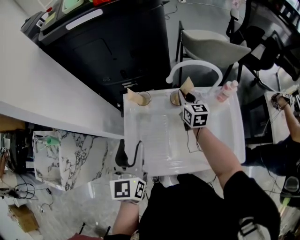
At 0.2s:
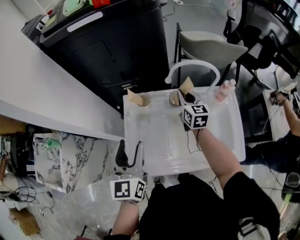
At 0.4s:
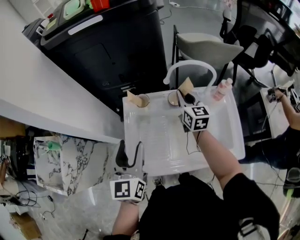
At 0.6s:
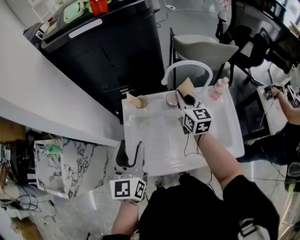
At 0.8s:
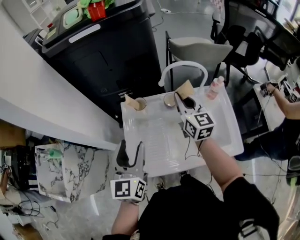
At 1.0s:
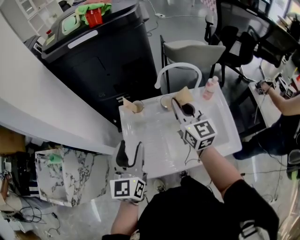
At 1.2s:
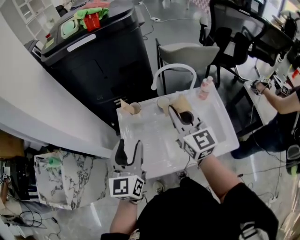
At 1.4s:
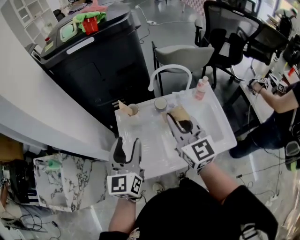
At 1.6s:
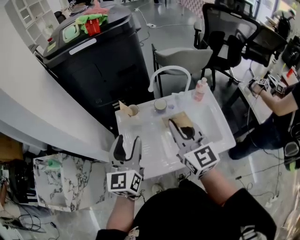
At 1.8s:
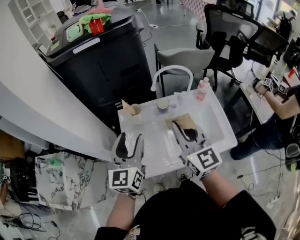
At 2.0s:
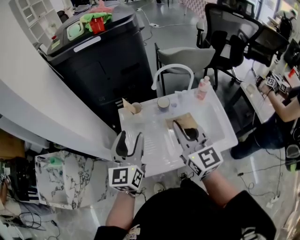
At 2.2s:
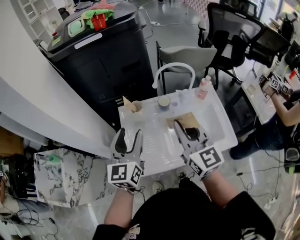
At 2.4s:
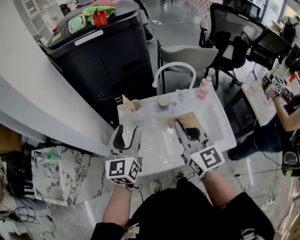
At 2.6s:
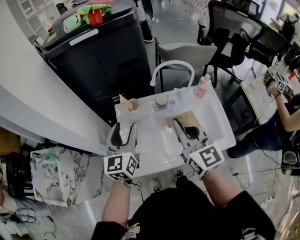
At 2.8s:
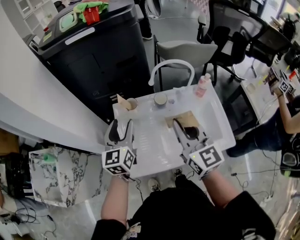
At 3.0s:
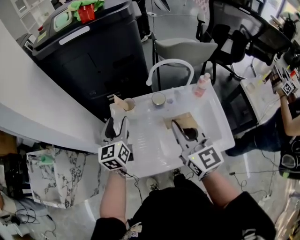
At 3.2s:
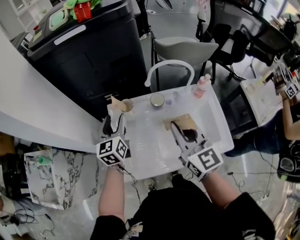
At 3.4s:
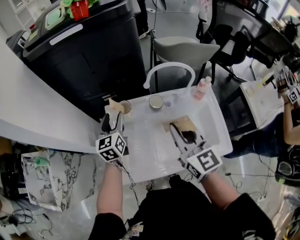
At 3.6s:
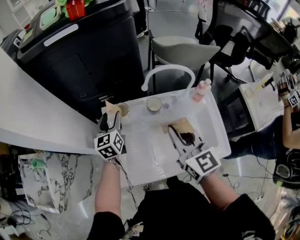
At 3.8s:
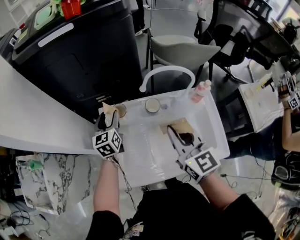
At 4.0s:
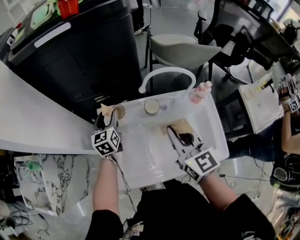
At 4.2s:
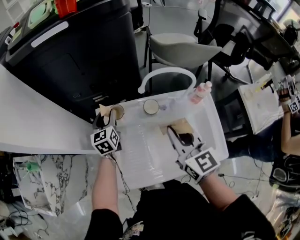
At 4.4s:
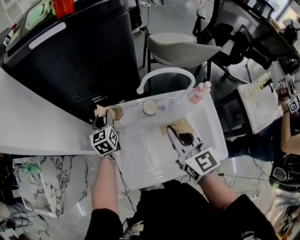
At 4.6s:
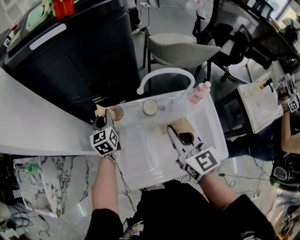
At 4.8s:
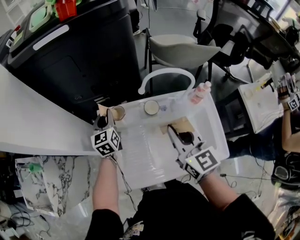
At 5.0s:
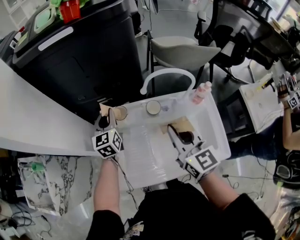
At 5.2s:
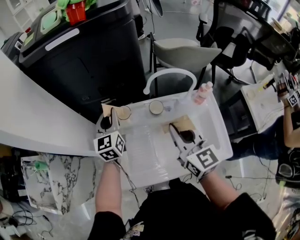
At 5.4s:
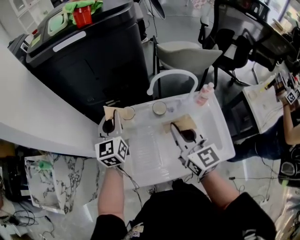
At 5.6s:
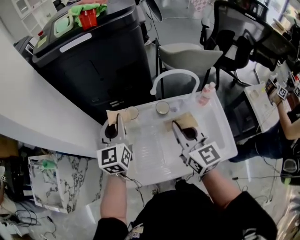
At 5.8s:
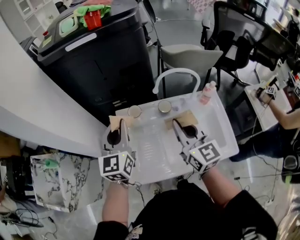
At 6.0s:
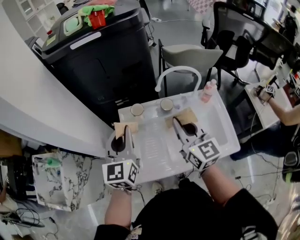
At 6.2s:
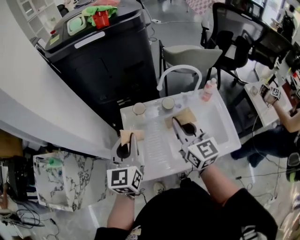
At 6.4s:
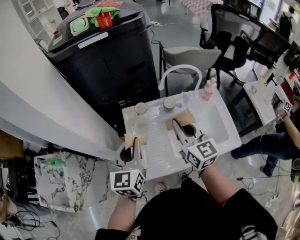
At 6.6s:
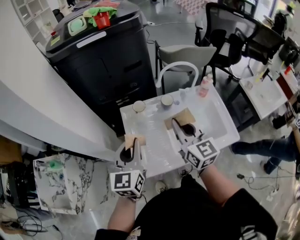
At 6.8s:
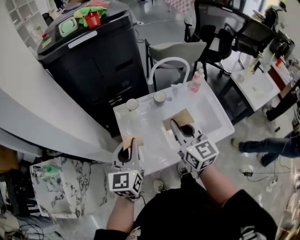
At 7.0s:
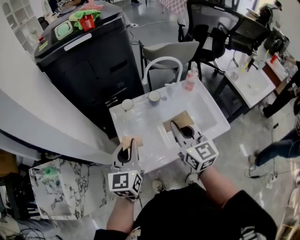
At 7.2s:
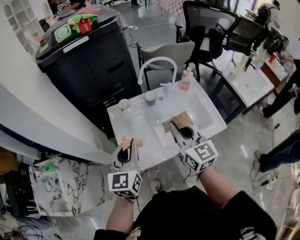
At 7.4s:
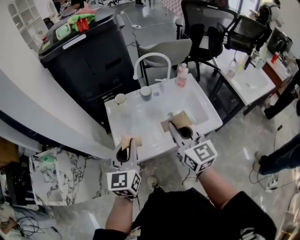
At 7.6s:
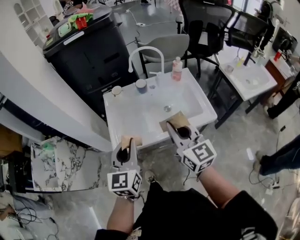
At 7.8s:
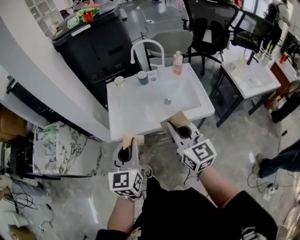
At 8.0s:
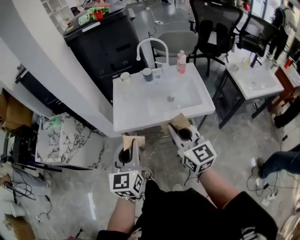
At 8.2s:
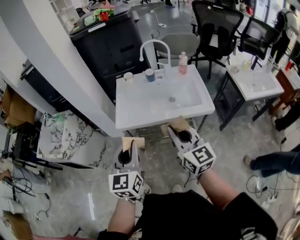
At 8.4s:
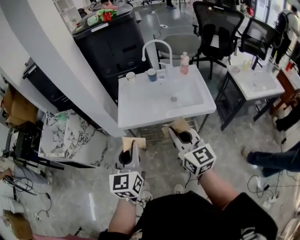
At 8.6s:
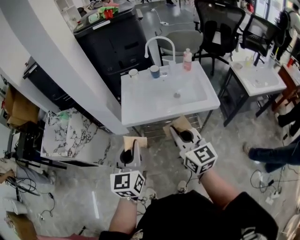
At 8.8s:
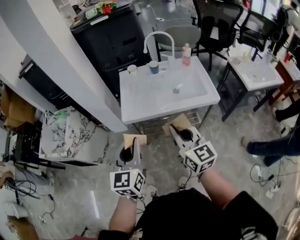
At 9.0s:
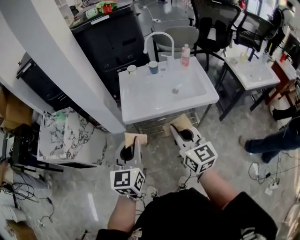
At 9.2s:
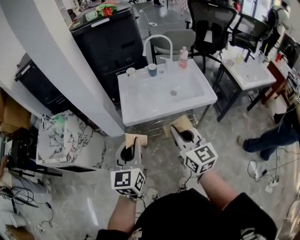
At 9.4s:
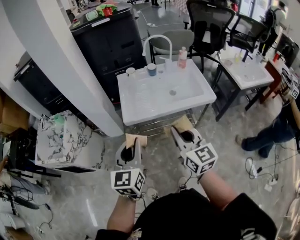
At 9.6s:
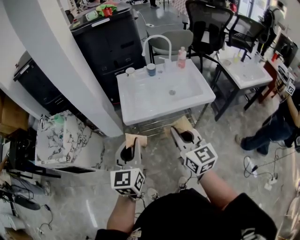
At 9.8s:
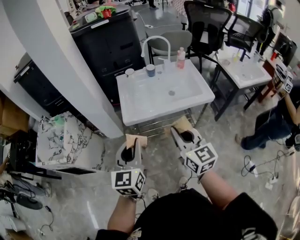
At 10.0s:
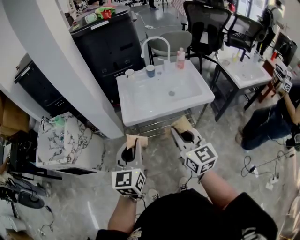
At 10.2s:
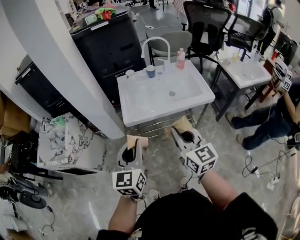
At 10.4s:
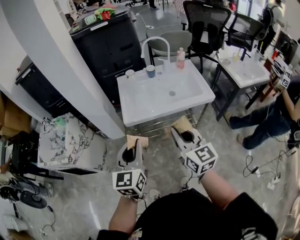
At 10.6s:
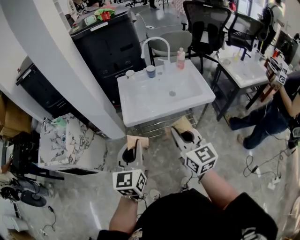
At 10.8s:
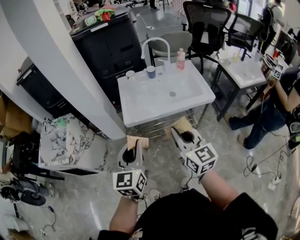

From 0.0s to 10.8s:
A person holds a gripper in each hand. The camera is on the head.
From 0.0s to 1.6s: The right gripper travels backward and upward by about 35 cm, and rotates approximately 20 degrees. Meanwhile the left gripper is displaced upward by approximately 5 cm.
From 1.6s to 3.0s: The left gripper is displaced forward and downward by some 15 cm.
From 3.0s to 4.6s: The left gripper is displaced forward and downward by roughly 20 cm, and closes its fingers, while the right gripper heads forward and downward, covering about 10 cm.
From 4.6s to 6.2s: The right gripper travels to the left and upward by about 10 cm. The left gripper is displaced backward and upward by some 30 cm.
From 6.2s to 7.8s: The left gripper goes roughly 35 cm backward and to the right. The right gripper goes some 30 cm backward.
From 7.8s to 9.2s: The left gripper heads to the left and backward, covering about 15 cm, while the right gripper goes some 15 cm backward and to the left.
From 9.2s to 10.8s: The grippers stay close to where they were, moving slightly.

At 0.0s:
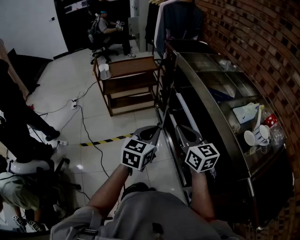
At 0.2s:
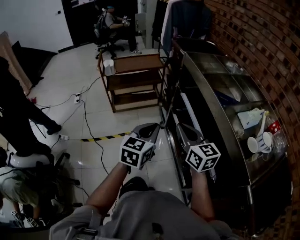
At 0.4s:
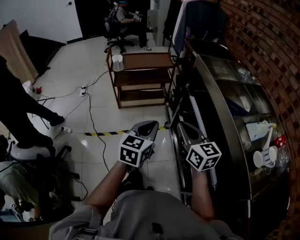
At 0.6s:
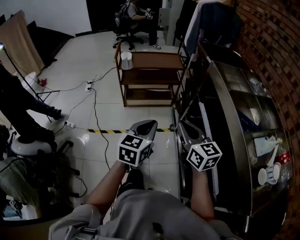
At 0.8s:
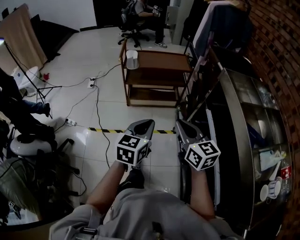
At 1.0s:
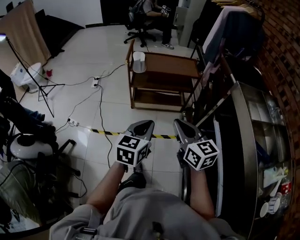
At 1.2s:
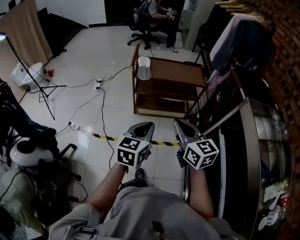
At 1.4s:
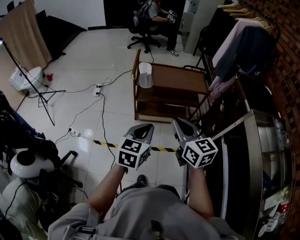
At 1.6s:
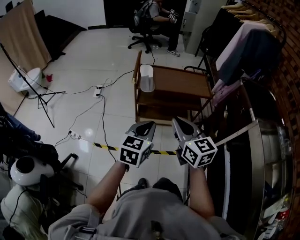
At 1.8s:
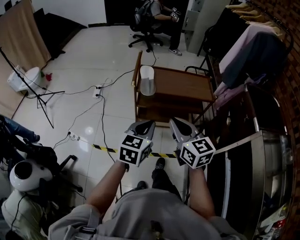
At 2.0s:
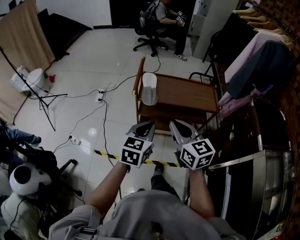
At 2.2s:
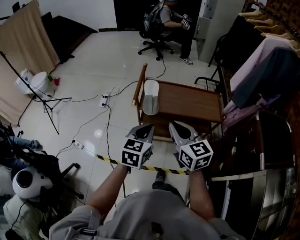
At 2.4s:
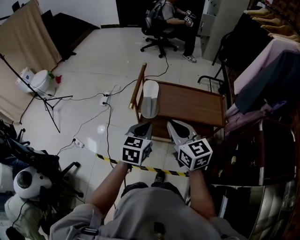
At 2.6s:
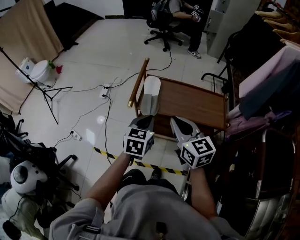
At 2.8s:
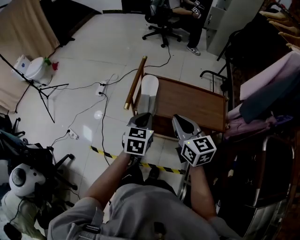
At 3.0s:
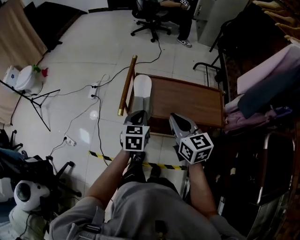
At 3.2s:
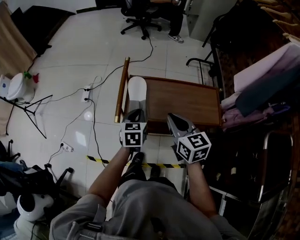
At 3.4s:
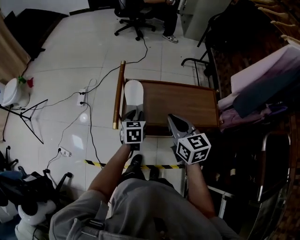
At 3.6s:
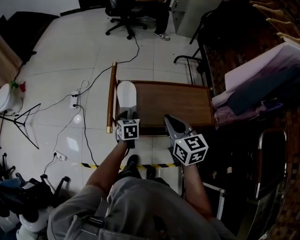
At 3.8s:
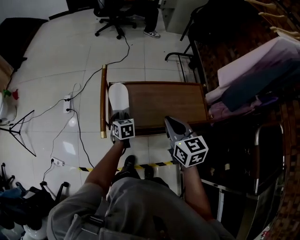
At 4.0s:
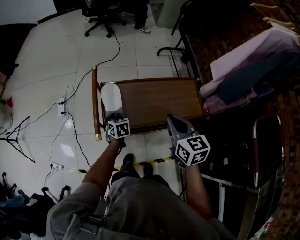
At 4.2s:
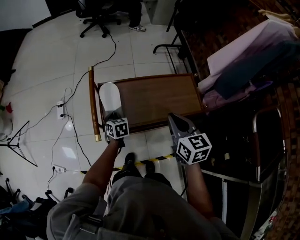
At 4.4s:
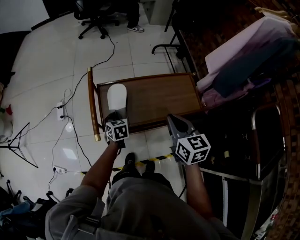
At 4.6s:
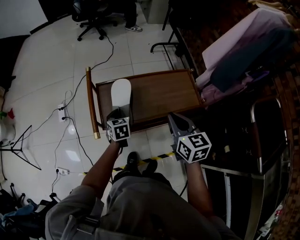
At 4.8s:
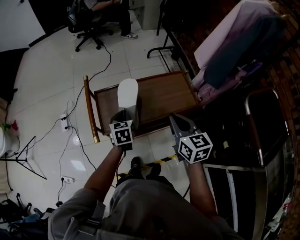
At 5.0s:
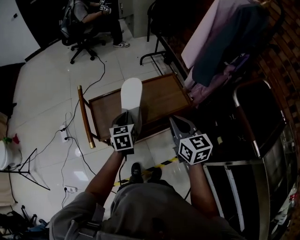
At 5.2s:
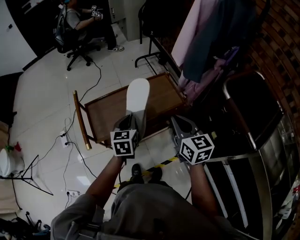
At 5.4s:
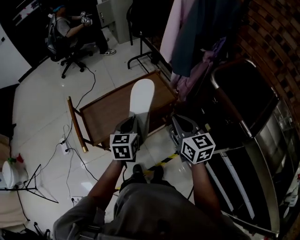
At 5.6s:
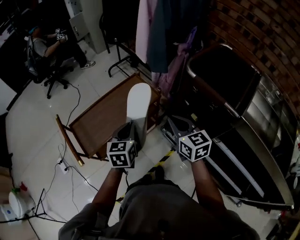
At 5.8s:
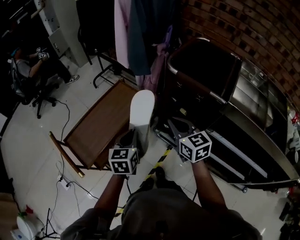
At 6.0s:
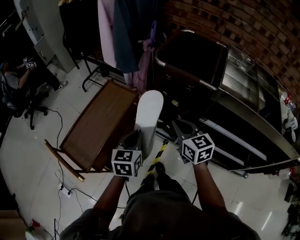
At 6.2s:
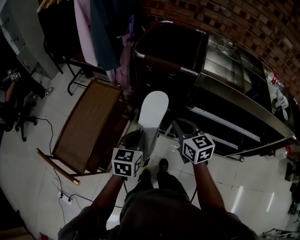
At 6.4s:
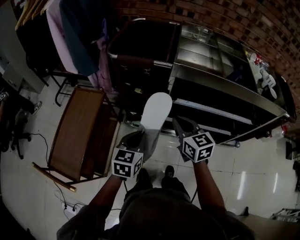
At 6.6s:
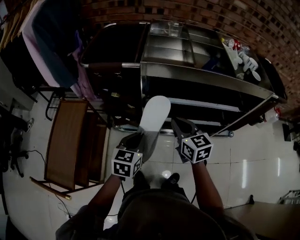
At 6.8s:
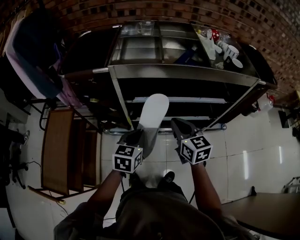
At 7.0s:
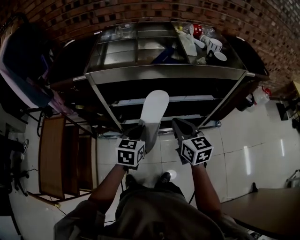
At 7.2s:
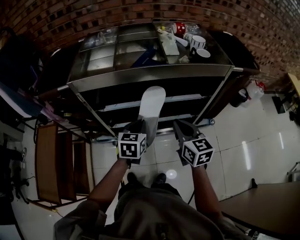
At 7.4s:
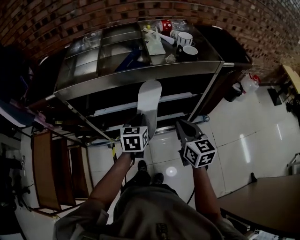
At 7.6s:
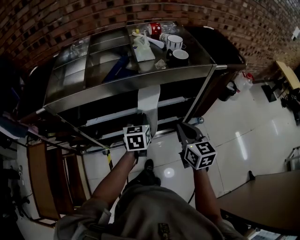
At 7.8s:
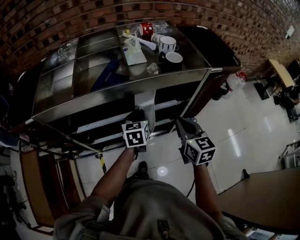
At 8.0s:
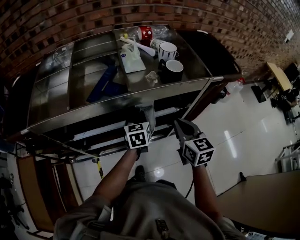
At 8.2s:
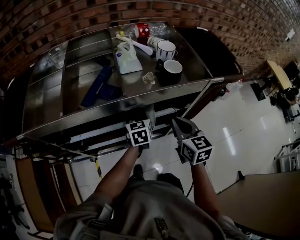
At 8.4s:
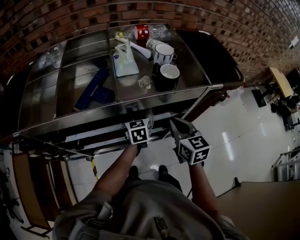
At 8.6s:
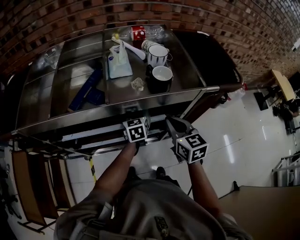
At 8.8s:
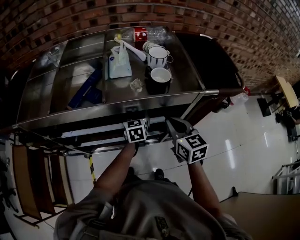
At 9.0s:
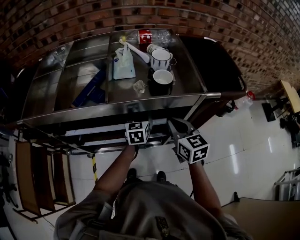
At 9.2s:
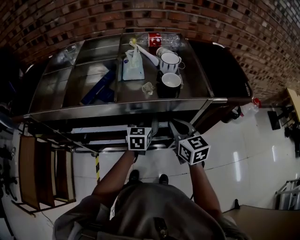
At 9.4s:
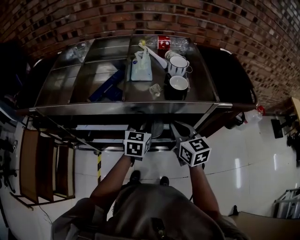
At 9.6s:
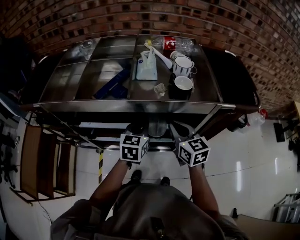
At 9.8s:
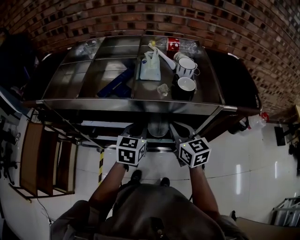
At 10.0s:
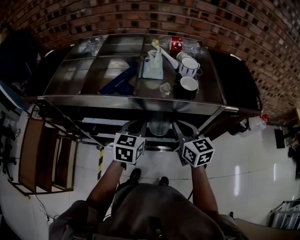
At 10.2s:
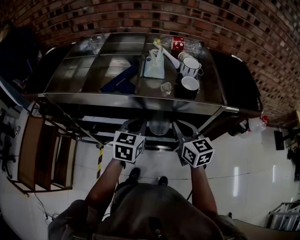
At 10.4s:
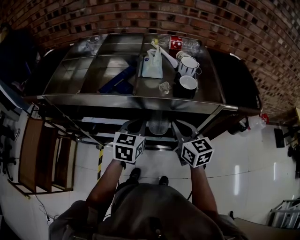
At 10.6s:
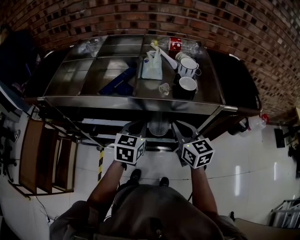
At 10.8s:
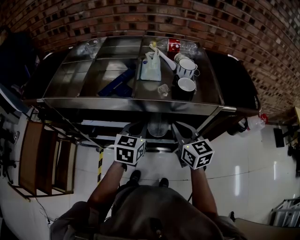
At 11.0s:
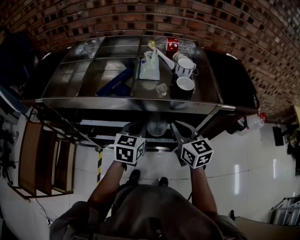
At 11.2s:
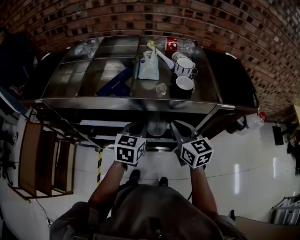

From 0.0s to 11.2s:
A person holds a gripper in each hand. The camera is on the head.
From 0.0s to 1.6s: Both grippers are carried forward and to the left, roughly 50 cm. The left gripper rotates approximately 20 degrees. The right gripper rotates roughly 20 degrees.
From 1.6s to 3.2s: The grippers both shift forward by roughly 40 cm. The left gripper changes its angle by some 20 degrees.
From 3.2s to 4.8s: The left gripper shifts approximately 5 cm to the right, travels downward and back again, roughly 15 cm each way, and opens, then closes again, while the right gripper shifts approximately 10 cm to the right, and changes its angle by roughly 20 degrees.
From 4.8s to 6.4s: The two grippers travel together, roughly 40 cm. The right gripper rotates about 60 degrees, while the left gripper changes its angle by about 80 degrees.
From 6.4s to 8.0s: The two grippers travel together, to the right, some 50 cm. The right gripper rotates about 30 degrees.
From 8.0s to 9.6s: The left gripper moves upward, about 5 cm, and opens and closes again. The right gripper shifts roughly 5 cm forward, and swivels about 20 degrees.
From 9.6s to 11.2s: The grippers make only small movements.

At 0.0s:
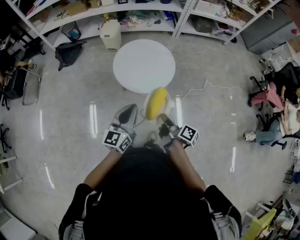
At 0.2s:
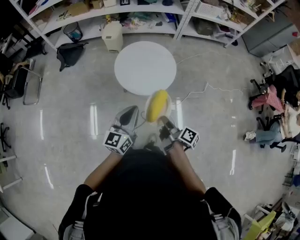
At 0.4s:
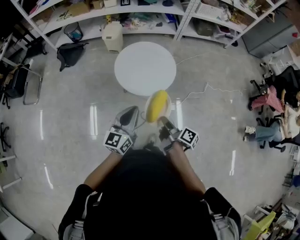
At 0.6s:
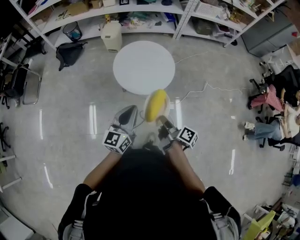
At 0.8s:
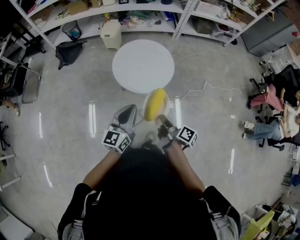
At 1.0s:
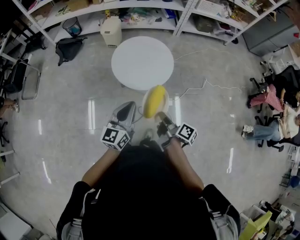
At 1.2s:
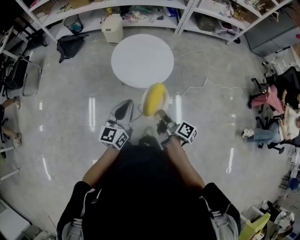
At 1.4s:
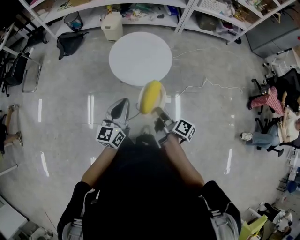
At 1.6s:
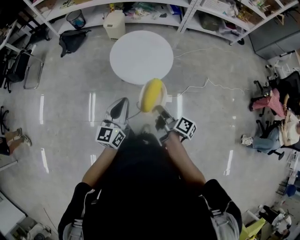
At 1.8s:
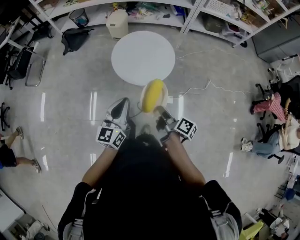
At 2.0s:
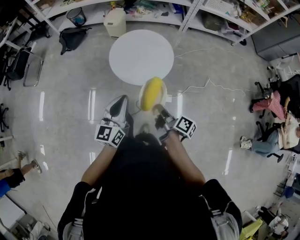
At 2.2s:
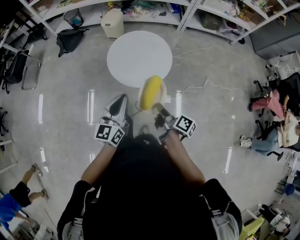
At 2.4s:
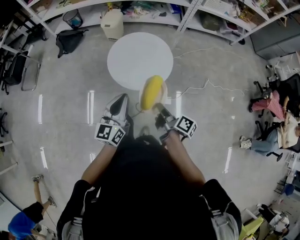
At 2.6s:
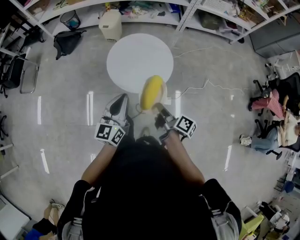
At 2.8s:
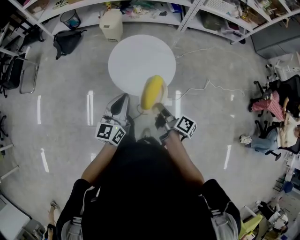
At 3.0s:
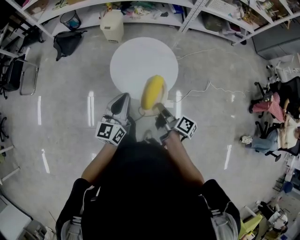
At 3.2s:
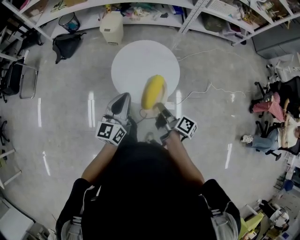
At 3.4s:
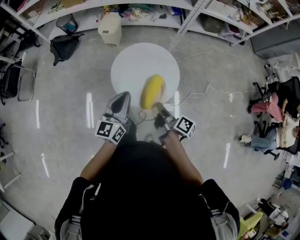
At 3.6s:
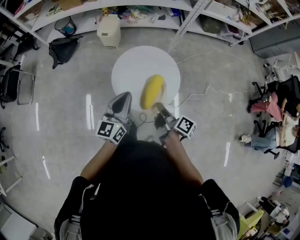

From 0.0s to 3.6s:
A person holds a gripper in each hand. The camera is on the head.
From 1.8s to 3.6s: The left gripper changes place by approximately 25 cm.